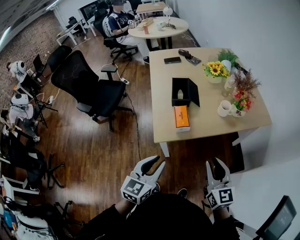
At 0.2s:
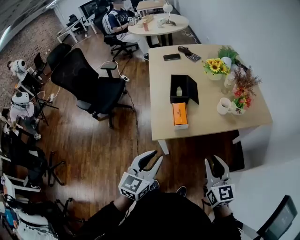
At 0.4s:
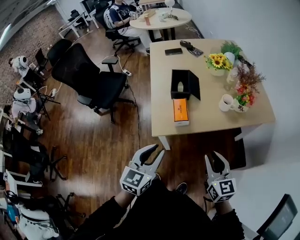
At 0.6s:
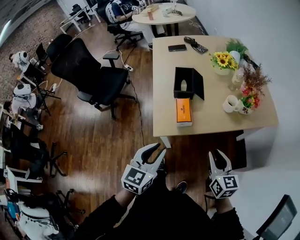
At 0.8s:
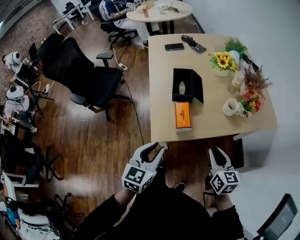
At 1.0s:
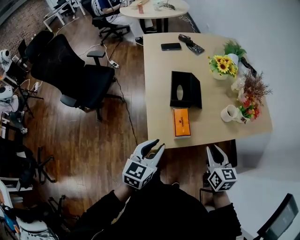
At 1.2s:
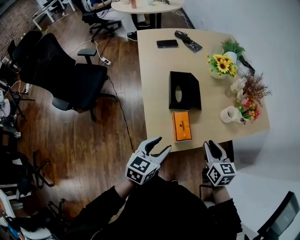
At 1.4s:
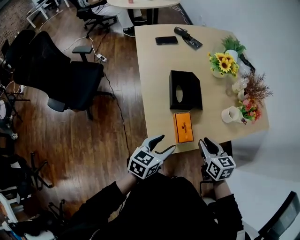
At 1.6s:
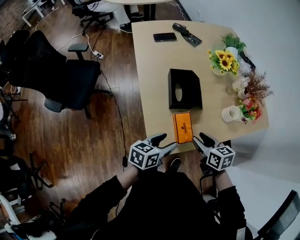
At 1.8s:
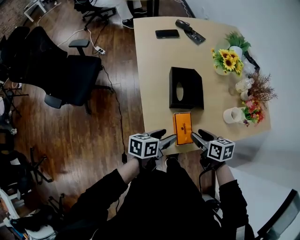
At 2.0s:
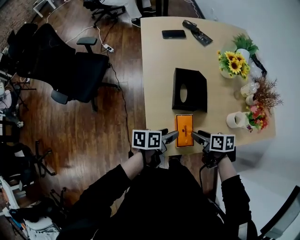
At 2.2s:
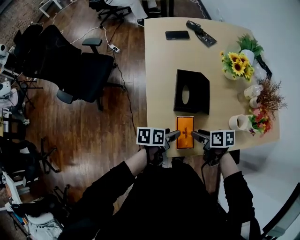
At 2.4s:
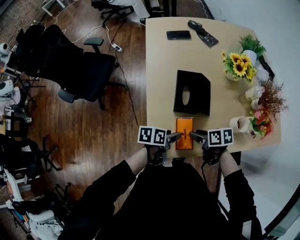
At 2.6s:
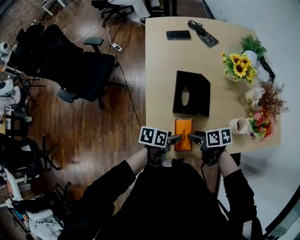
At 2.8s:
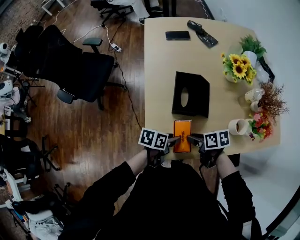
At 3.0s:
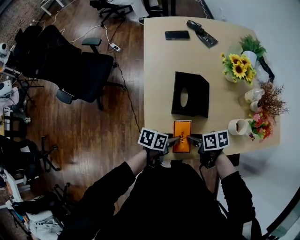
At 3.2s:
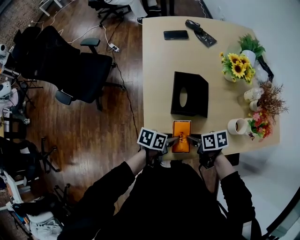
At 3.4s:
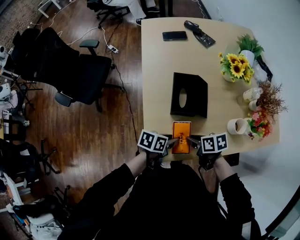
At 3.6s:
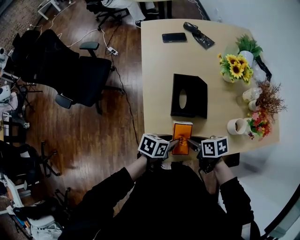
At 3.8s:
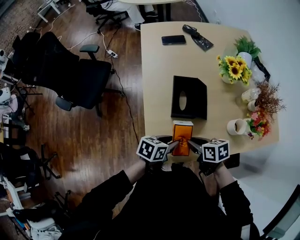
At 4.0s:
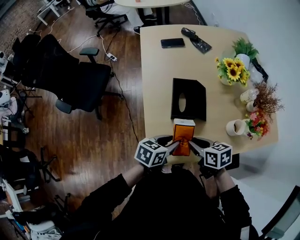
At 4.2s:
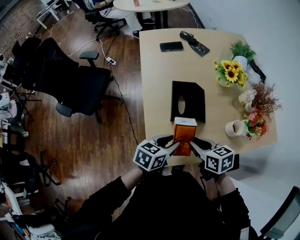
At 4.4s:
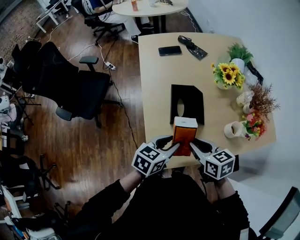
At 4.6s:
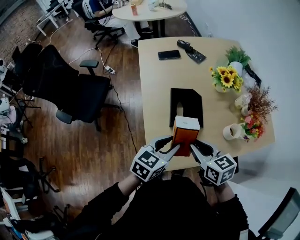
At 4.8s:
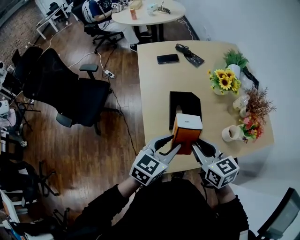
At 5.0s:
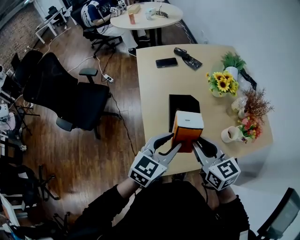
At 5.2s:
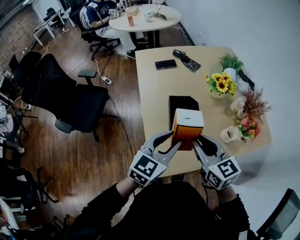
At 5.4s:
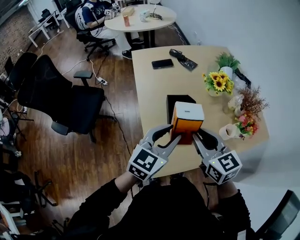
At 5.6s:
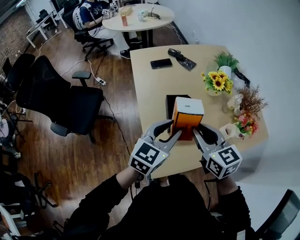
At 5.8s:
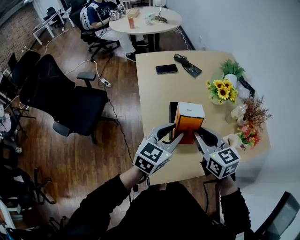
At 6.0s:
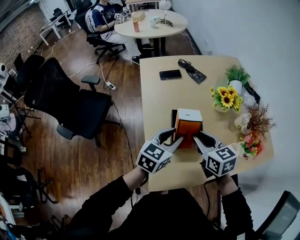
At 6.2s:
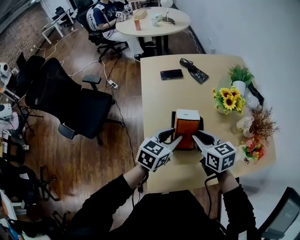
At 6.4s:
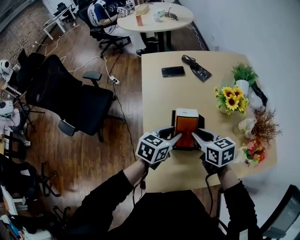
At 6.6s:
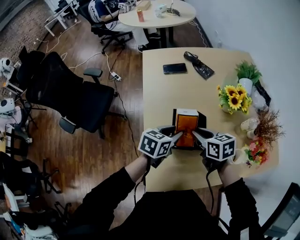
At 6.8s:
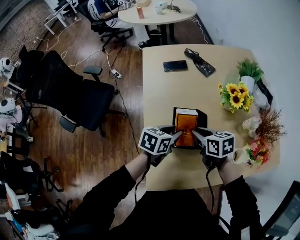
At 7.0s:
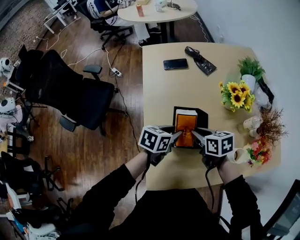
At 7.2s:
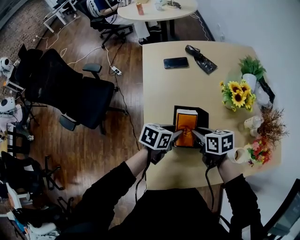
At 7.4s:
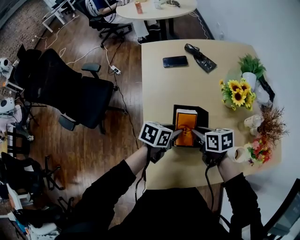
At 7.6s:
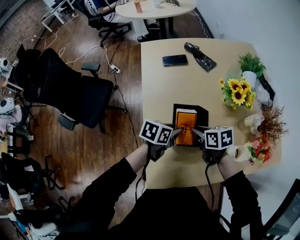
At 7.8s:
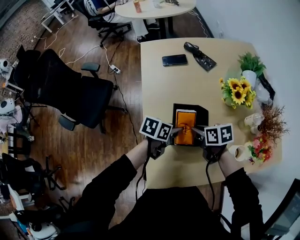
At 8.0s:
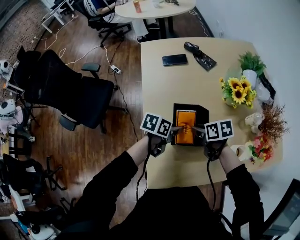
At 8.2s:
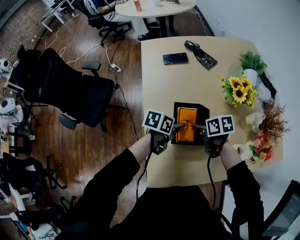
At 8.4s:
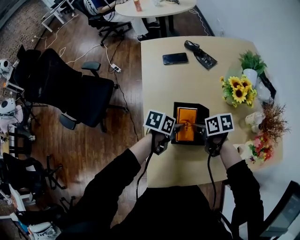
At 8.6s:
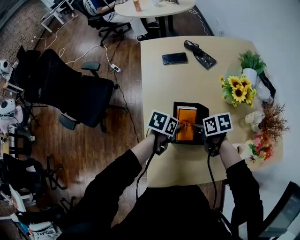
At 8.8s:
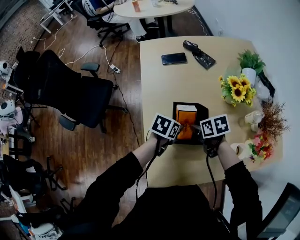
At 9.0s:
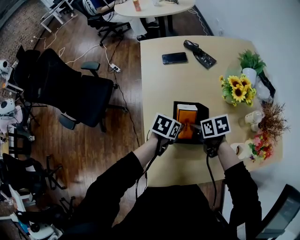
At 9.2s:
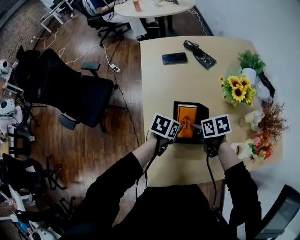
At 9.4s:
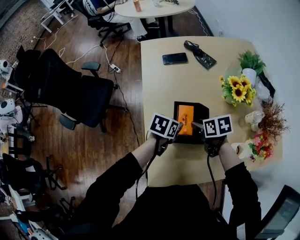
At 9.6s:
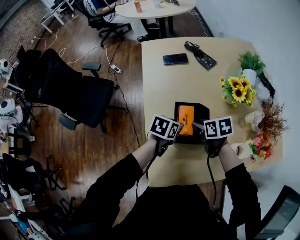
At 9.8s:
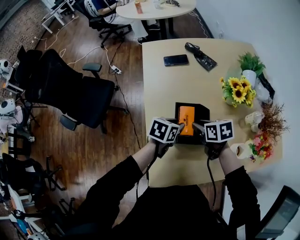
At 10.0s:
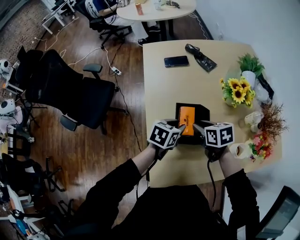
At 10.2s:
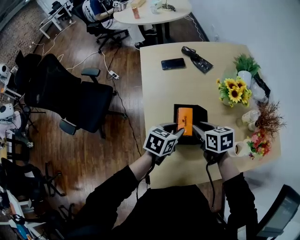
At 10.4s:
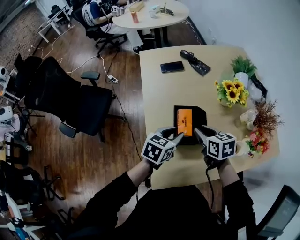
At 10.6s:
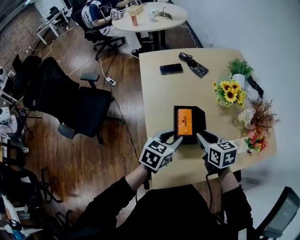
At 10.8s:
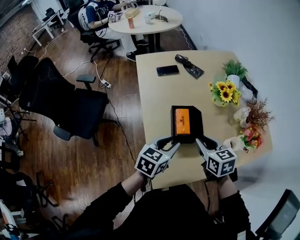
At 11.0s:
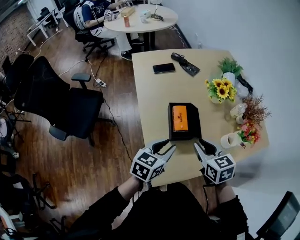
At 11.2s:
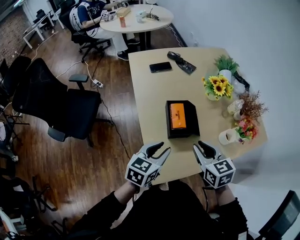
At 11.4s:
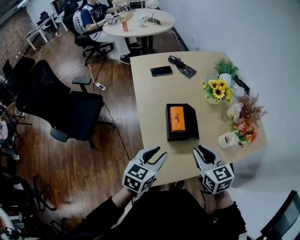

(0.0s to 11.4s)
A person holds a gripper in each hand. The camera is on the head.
0.0s - 1.4s: The grippers both shift forward and downward by approximately 25 cm. The left gripper swivels some 30 degrees, and opens, while the right gripper turns by about 30 degrees.
1.4s - 2.8s: The two grippers go about 10 cm downward. The left gripper rotates some 40 degrees; the right gripper swivels some 50 degrees.
2.8s - 4.2s: Both grippers move upward, some 10 cm. The right gripper turns by some 30 degrees. Meanwhile the left gripper rotates about 30 degrees.
4.2s - 5.6s: The two grippers go about 15 cm upward. The right gripper turns by approximately 30 degrees; the left gripper turns by some 40 degrees.
5.6s - 7.2s: The two grippers go roughly 20 cm downward and forward. The left gripper turns by about 40 degrees, while the right gripper rotates approximately 40 degrees.
7.2s - 10.0s: The grippers move only a little.
10.0s - 11.4s: The two grippers go roughly 20 cm backward and upward. The right gripper swivels about 30 degrees; the left gripper turns by roughly 20 degrees.

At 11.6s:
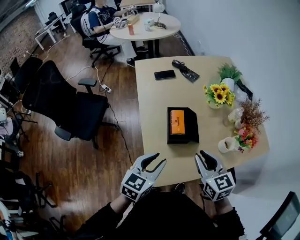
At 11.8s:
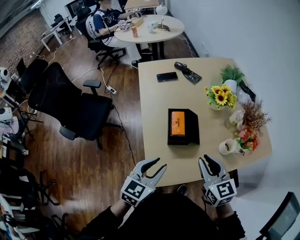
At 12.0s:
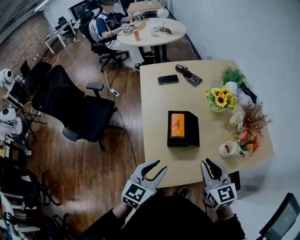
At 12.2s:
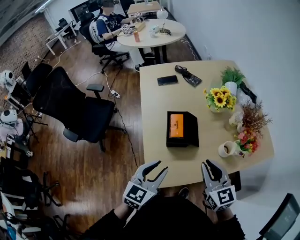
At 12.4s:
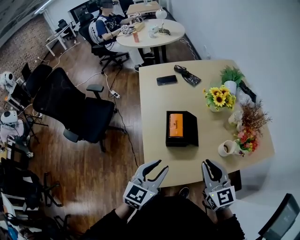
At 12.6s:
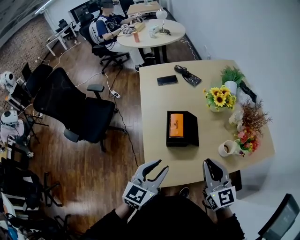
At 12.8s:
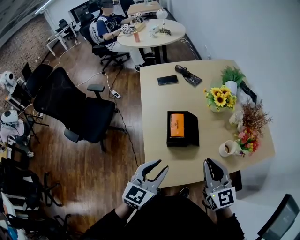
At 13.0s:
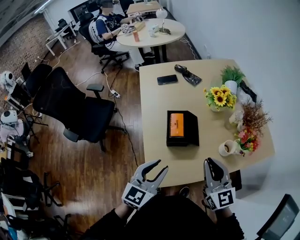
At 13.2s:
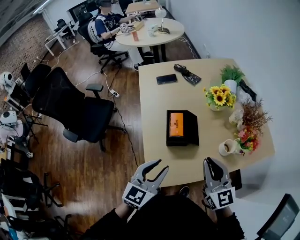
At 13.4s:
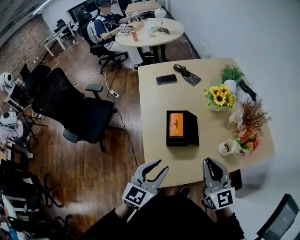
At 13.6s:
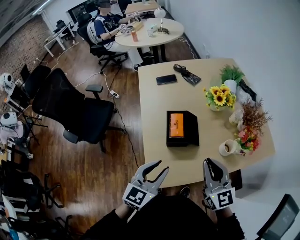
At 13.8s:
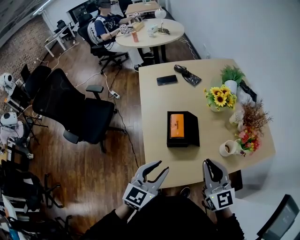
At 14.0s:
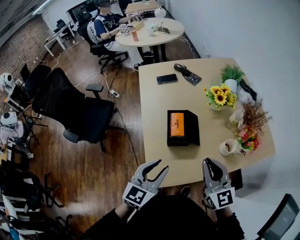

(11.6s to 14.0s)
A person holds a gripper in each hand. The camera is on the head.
11.6s - 12.8s: The left gripper ends up some 5 cm from where it was. Meanwhile the right gripper is displaced to the right by some 5 cm.
12.8s - 14.0s: Neither gripper changes place.

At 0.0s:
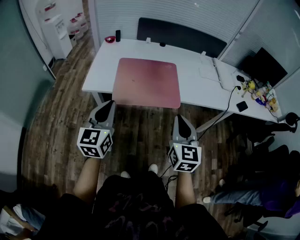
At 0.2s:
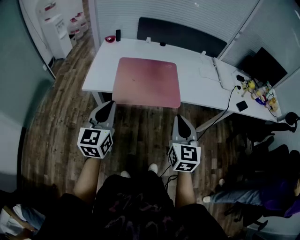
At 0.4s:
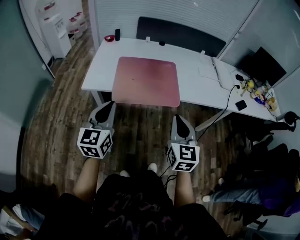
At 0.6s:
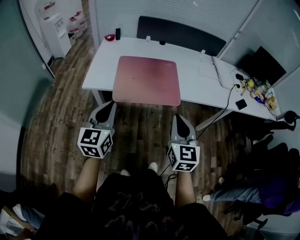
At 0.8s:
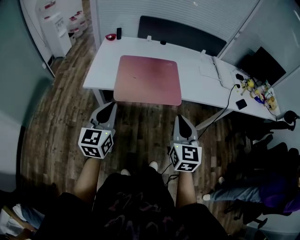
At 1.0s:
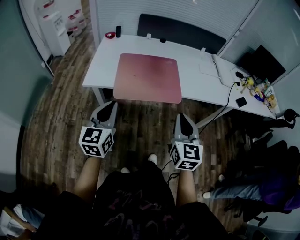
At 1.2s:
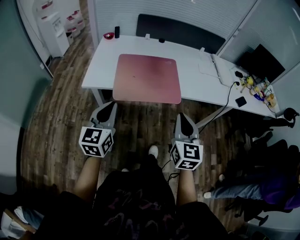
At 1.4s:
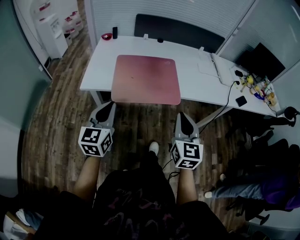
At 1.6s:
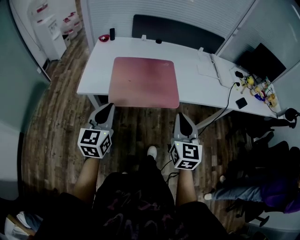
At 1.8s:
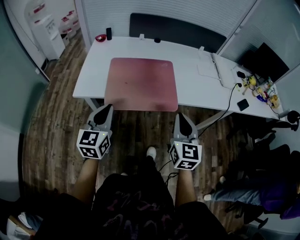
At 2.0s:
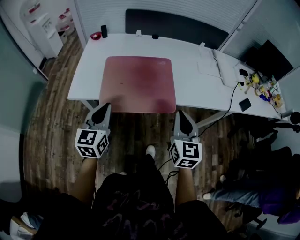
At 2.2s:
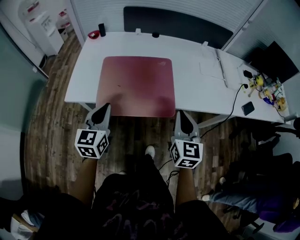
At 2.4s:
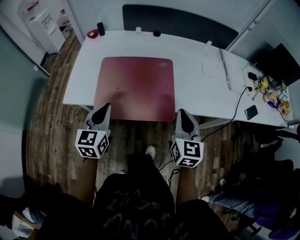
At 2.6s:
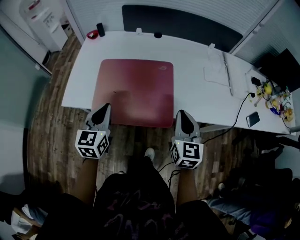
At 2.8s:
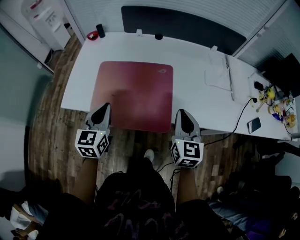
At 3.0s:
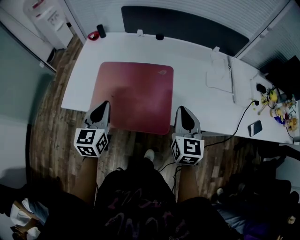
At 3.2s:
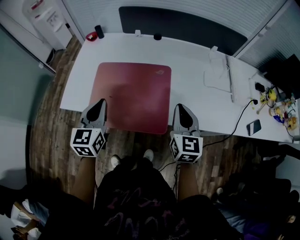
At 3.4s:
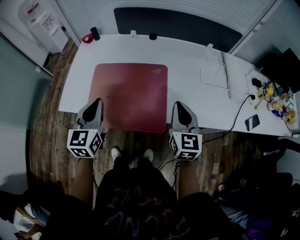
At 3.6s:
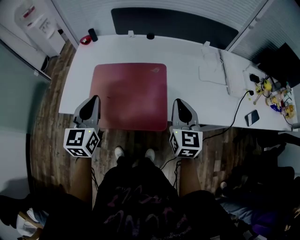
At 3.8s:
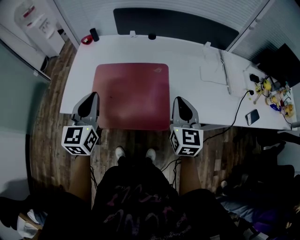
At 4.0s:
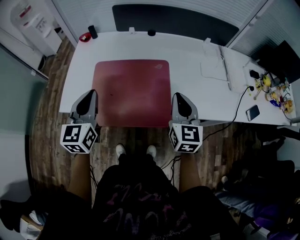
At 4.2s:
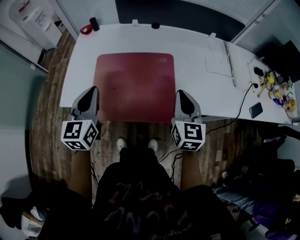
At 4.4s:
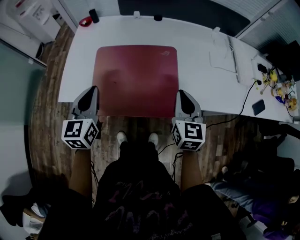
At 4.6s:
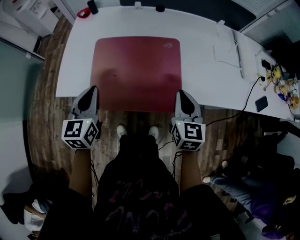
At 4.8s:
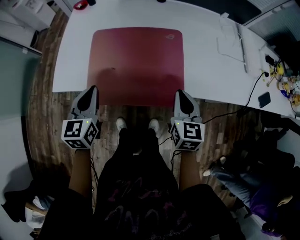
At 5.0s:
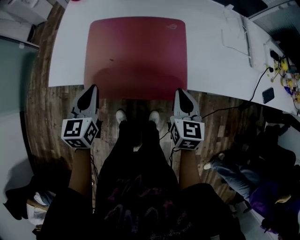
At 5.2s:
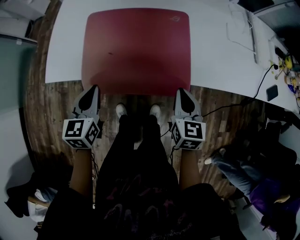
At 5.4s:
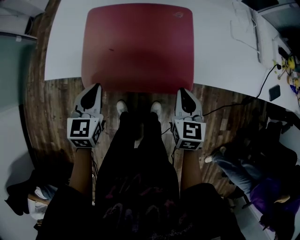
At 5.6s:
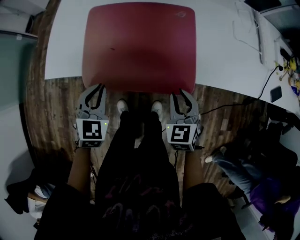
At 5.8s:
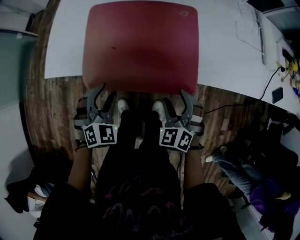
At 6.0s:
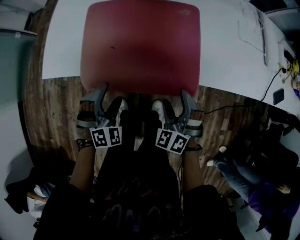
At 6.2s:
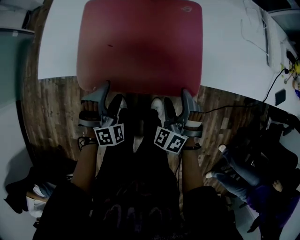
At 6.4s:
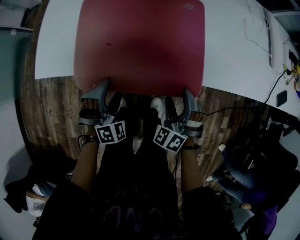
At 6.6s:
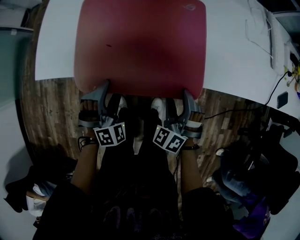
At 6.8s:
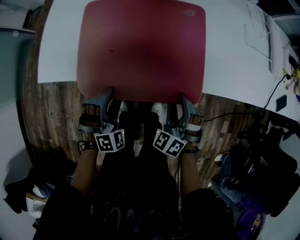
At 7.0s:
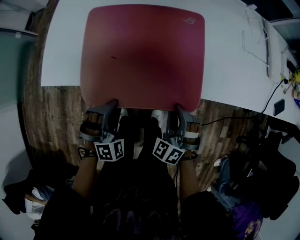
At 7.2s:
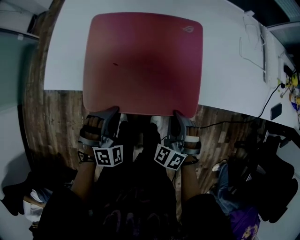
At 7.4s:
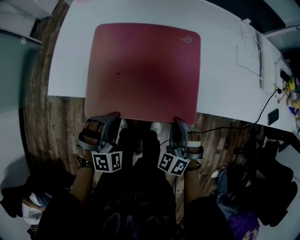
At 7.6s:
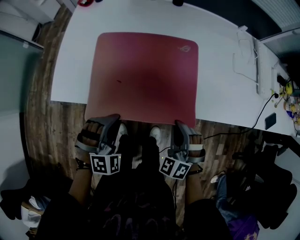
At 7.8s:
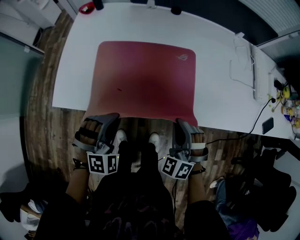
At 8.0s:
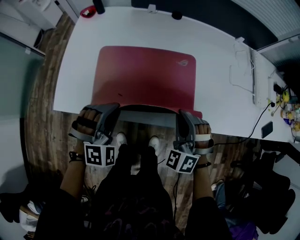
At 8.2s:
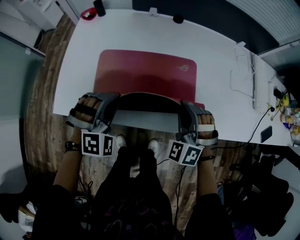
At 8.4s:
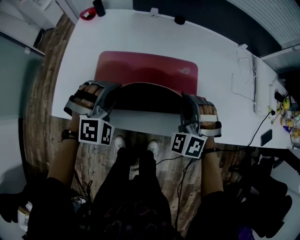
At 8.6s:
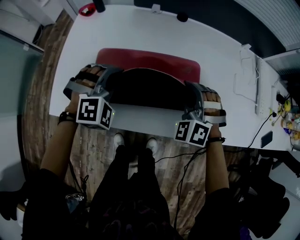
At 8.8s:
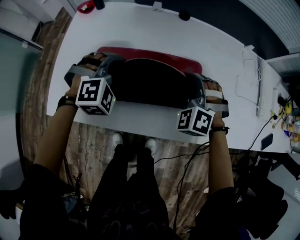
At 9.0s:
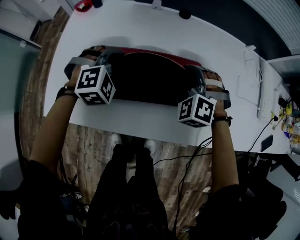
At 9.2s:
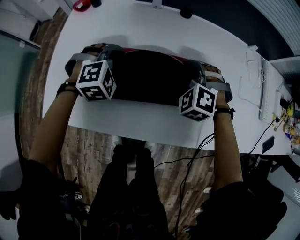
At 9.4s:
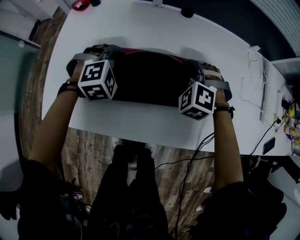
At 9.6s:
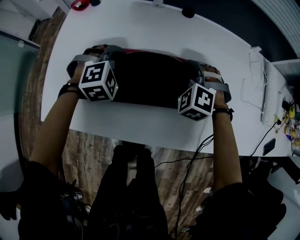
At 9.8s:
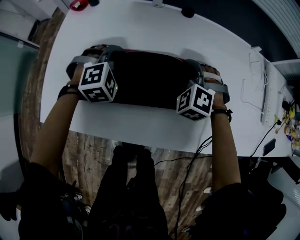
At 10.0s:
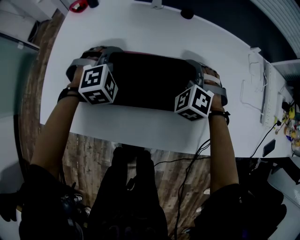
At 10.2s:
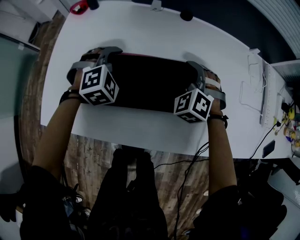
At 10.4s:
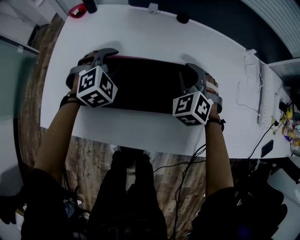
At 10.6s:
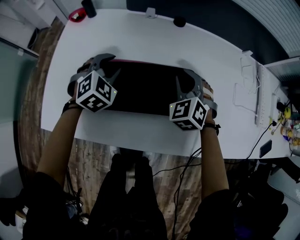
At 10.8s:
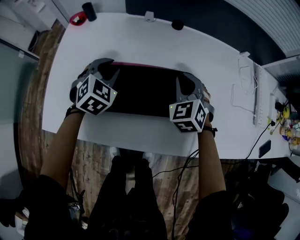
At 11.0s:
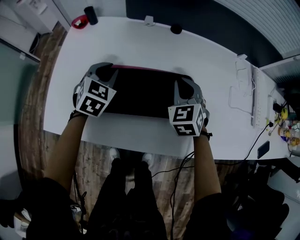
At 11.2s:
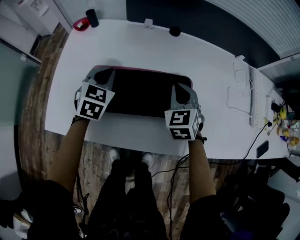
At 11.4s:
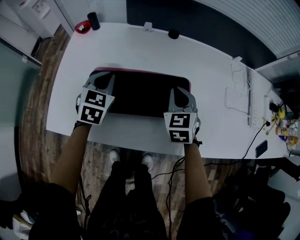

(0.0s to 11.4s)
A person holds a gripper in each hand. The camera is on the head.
0.0s - 1.4s: The grippers stay close to where they were, moving slightly.
1.4s - 2.8s: Both grippers travel together forward, approximately 30 cm.
2.8s - 4.2s: The left gripper is displaced to the left and upward by approximately 10 cm.
4.2s - 5.6s: The grippers both shift downward by about 20 cm. The left gripper swivels roughly 30 degrees, while the right gripper changes its angle by approximately 30 degrees.
5.6s - 7.2s: The right gripper turns by roughly 30 degrees, and opens, then closes once more, while the left gripper moves downward, about 5 cm, twists about 40 degrees clockwise, seen from behind, and opens, then closes again.
7.2s - 8.6s: The right gripper is displaced forward and upward by roughly 25 cm, and turns by approximately 20 degrees, while the left gripper is displaced forward by approximately 25 cm.
8.6s - 10.0s: The grippers both shift forward and downward by some 15 cm.
10.0s - 11.4s: The right gripper shifts roughly 10 cm upward and backward, and rolls clockwise, seen from behind, by approximately 50 degrees. The left gripper shifts approximately 10 cm upward, and rotates around the line of its fingers by approximately 50 degrees, counterclockwise from behind.
